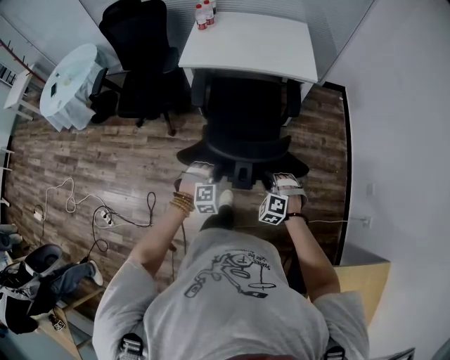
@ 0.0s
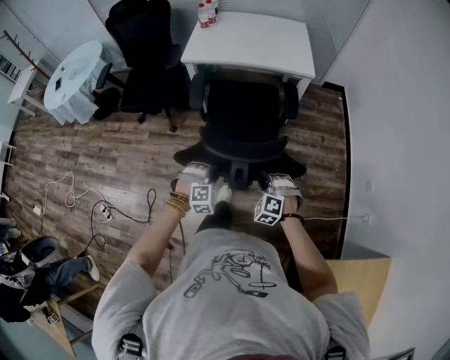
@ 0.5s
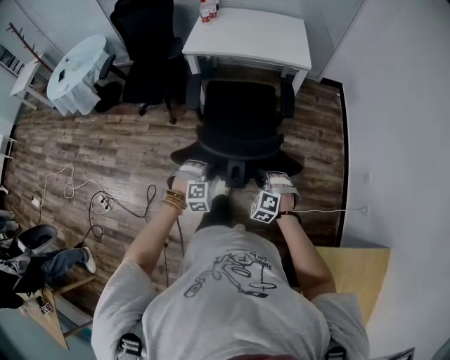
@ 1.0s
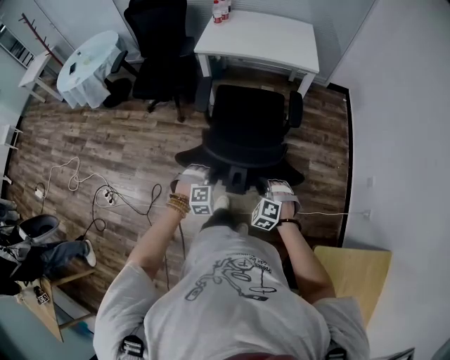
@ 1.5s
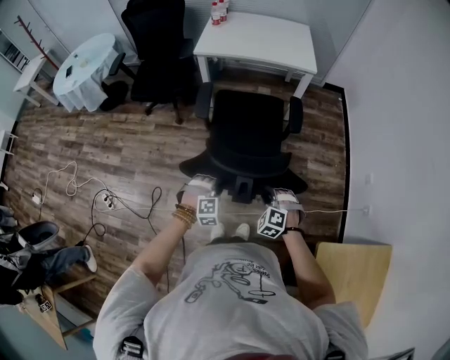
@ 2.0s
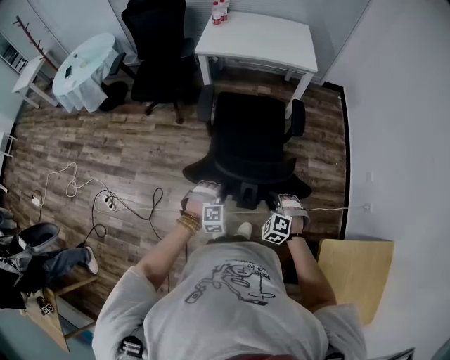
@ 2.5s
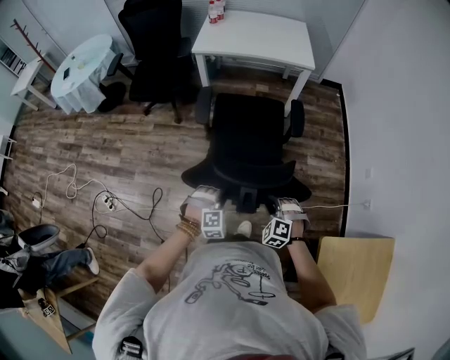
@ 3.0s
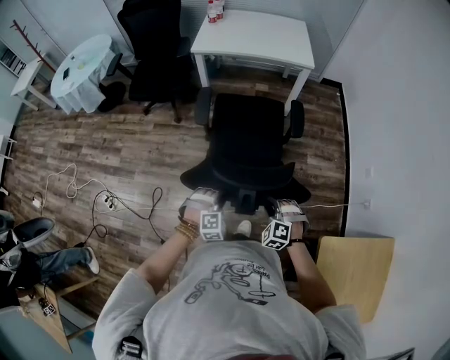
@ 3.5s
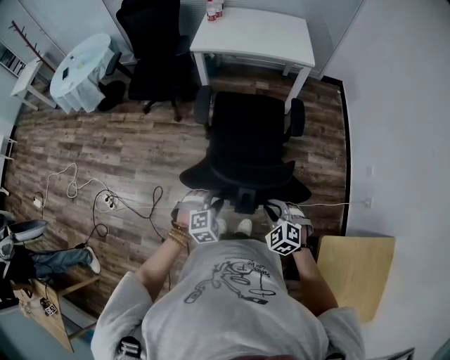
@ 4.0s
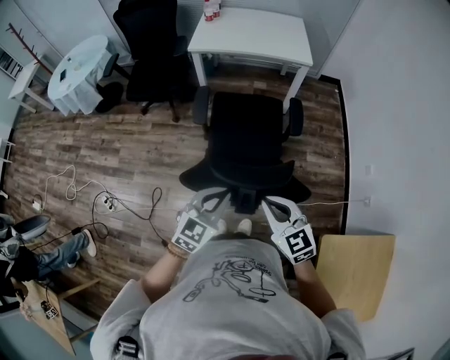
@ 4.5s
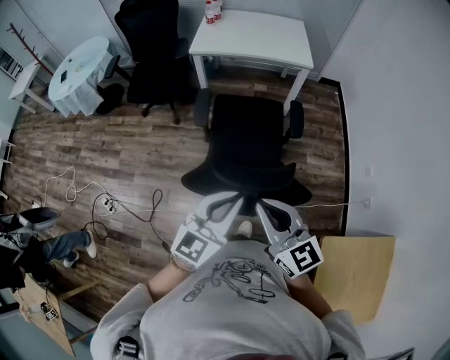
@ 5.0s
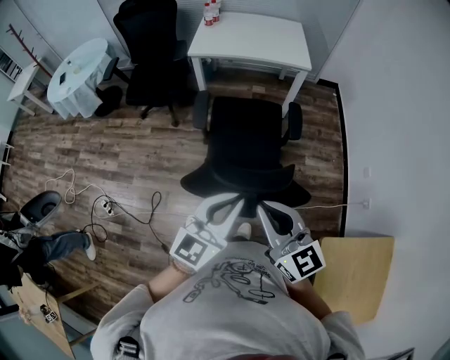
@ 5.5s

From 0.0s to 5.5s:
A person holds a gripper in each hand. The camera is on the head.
From 0.0s to 2.0s: The grippers both shift backward by roughly 25 cm.
From 2.0s to 3.5s: The two grippers go about 5 cm backward.
From 3.5s to 5.5s: The grippers both shift upward by about 30 cm. The left gripper tips its fingers upward by roughly 50 degrees, and closes its fingers. Meanwhile the right gripper points its fingers roughly 50 degrees further upward, and closes its fingers.

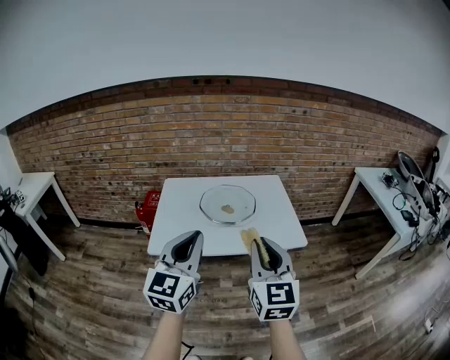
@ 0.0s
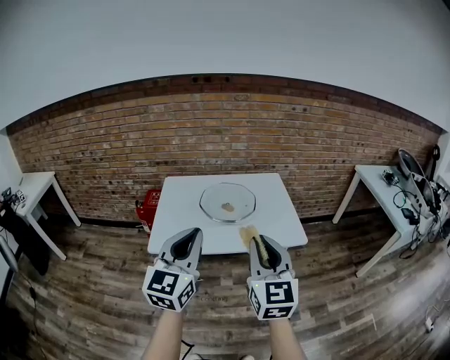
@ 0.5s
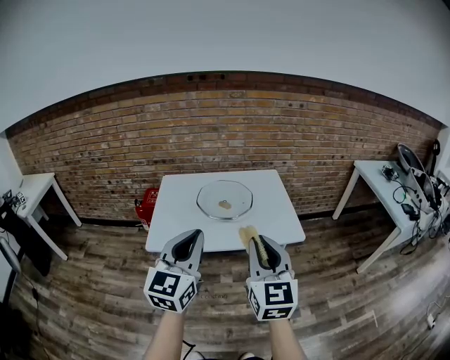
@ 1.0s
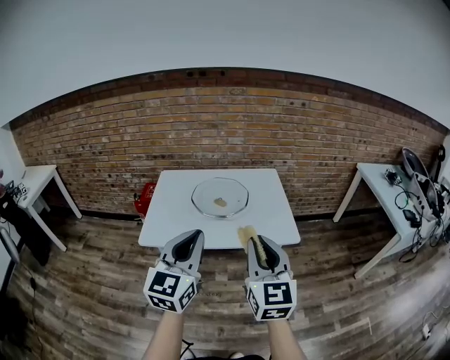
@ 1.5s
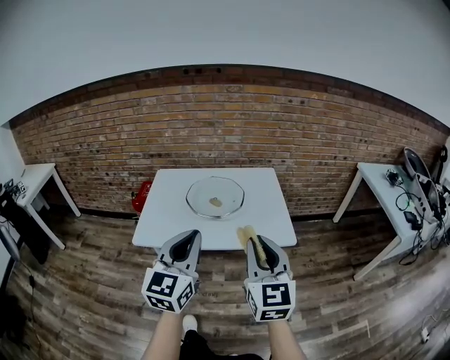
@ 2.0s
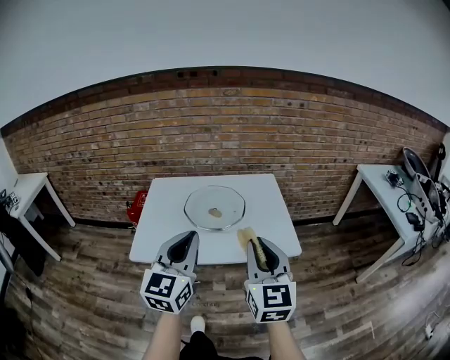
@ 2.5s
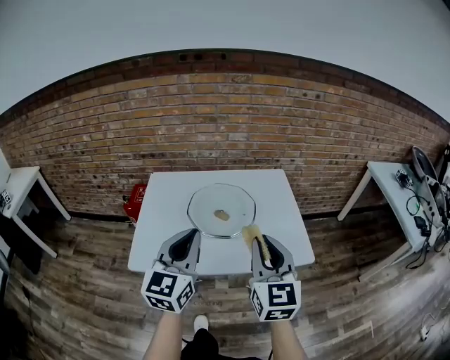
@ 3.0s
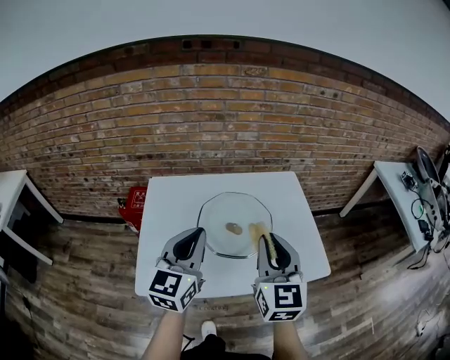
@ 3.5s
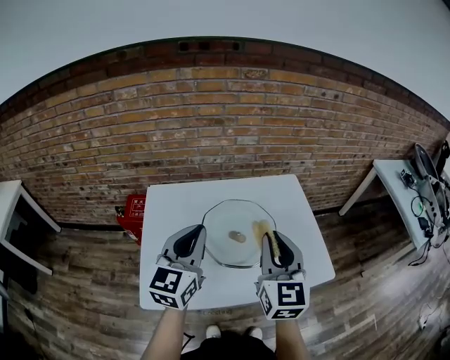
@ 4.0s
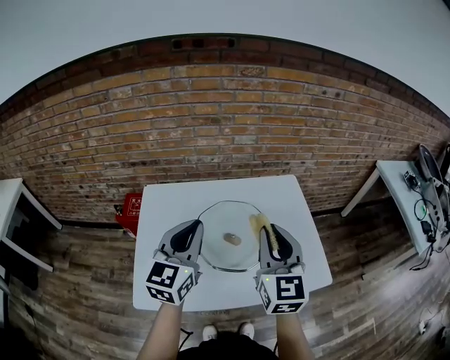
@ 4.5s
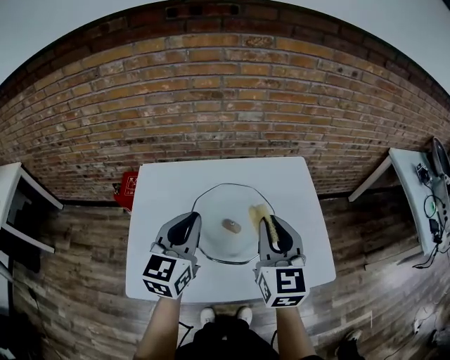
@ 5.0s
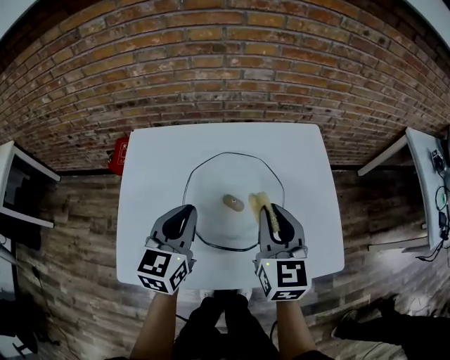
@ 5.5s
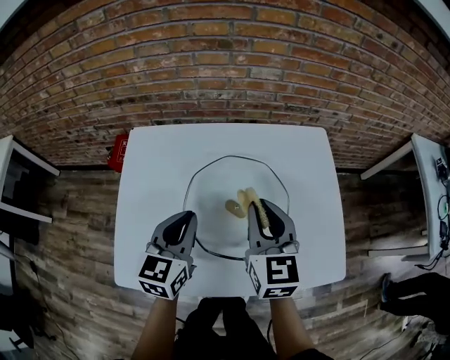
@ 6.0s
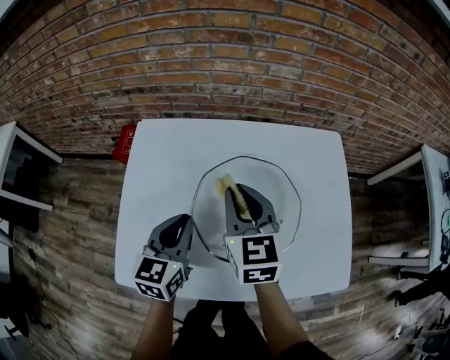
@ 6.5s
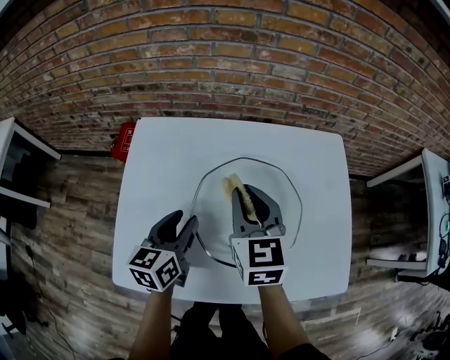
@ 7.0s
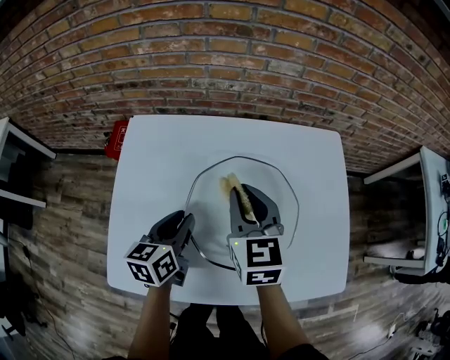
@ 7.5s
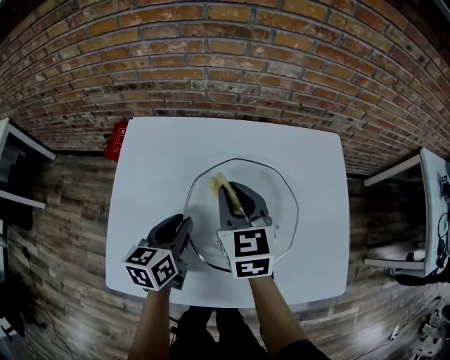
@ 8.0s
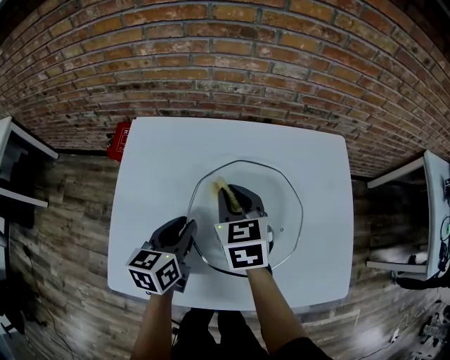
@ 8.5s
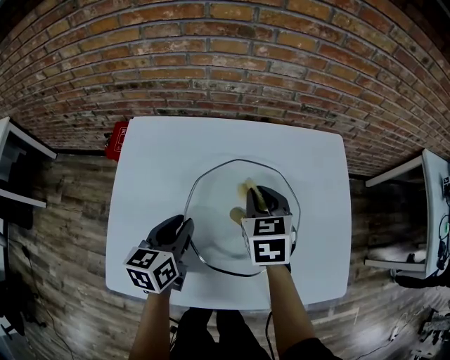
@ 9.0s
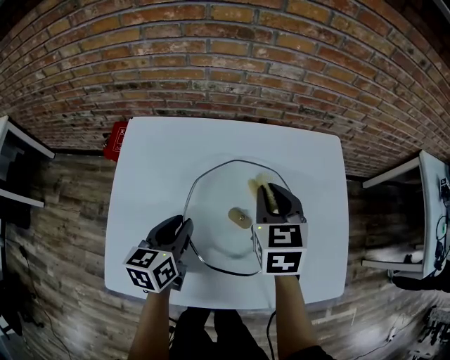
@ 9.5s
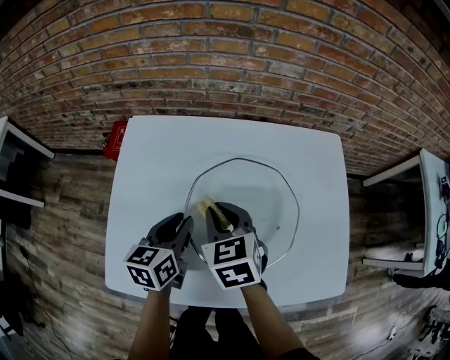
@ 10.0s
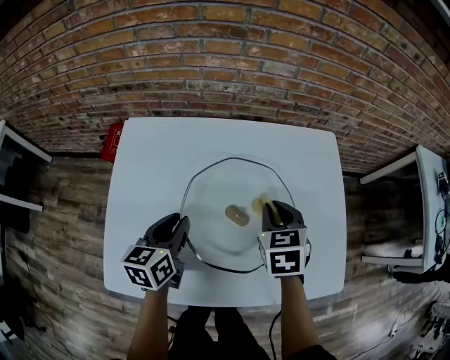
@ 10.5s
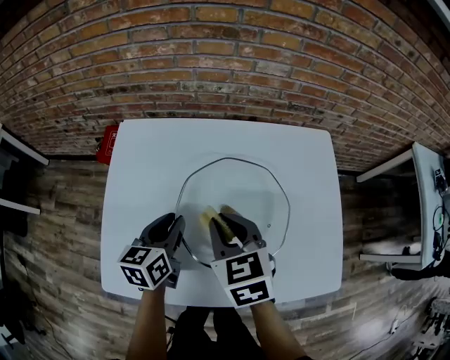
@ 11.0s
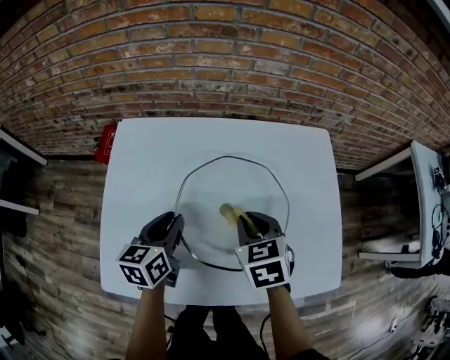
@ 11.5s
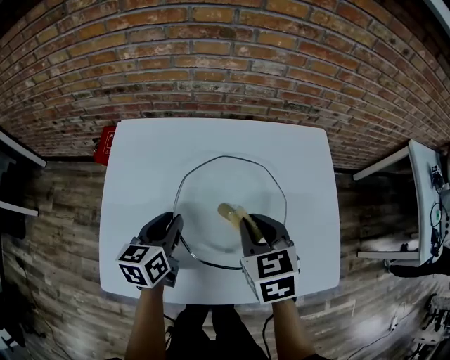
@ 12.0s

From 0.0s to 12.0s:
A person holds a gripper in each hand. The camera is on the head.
From 0.0s to 2.0s: The two grippers go about 10 cm to the right.
From 2.0s to 4.0s: The two grippers go roughly 35 cm forward and to the left.
From 4.0s to 6.0s: The two grippers go approximately 20 cm downward and forward. The left gripper swivels some 20 degrees.
From 6.0s to 8.0s: The left gripper is displaced downward by approximately 10 cm, turns by approximately 20 degrees, and opens. The right gripper shifts approximately 15 cm to the left, forward and downward.
From 8.0s to 10.0s: The right gripper goes to the right and returns, about 10 cm each way.
From 10.0s to 12.0s: The right gripper goes left and right, approximately 15 cm each way, reversing 2 times.

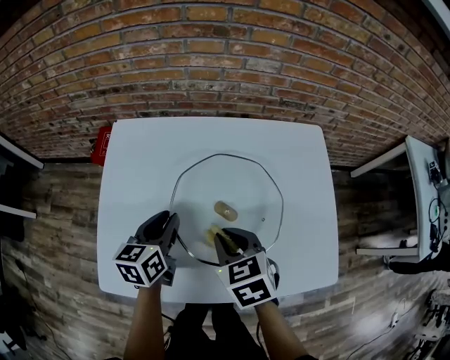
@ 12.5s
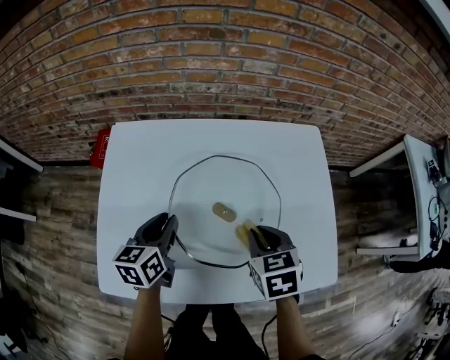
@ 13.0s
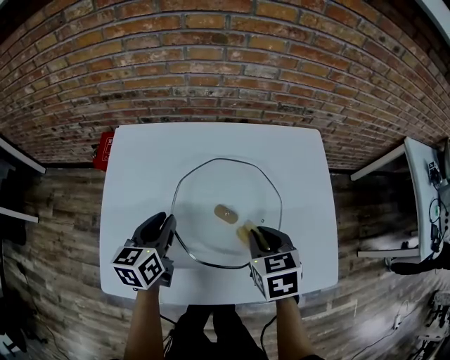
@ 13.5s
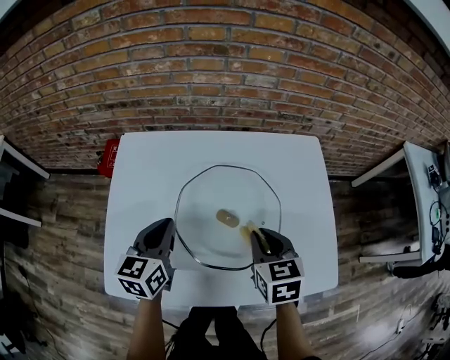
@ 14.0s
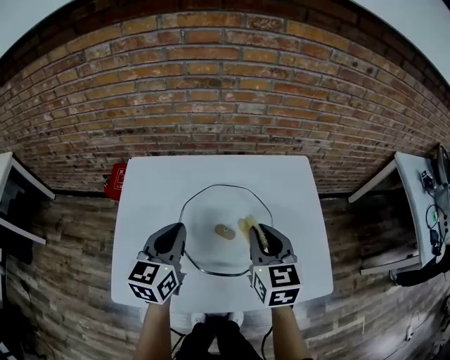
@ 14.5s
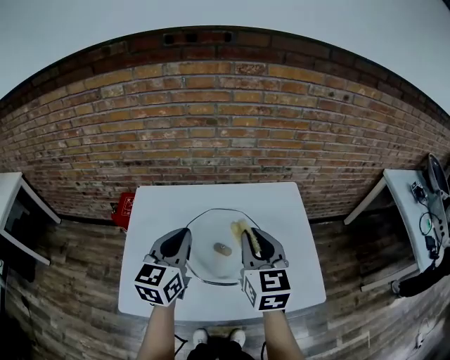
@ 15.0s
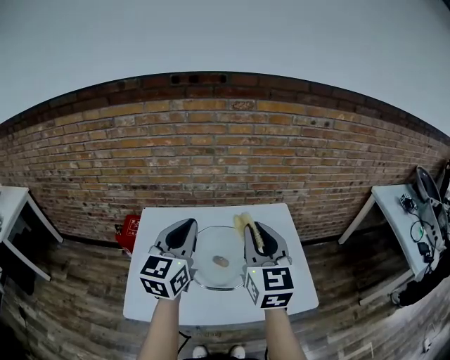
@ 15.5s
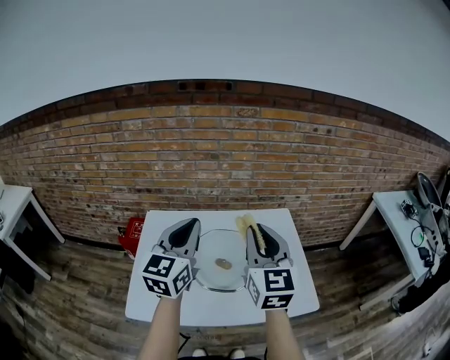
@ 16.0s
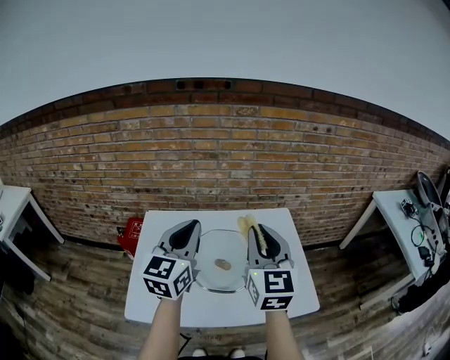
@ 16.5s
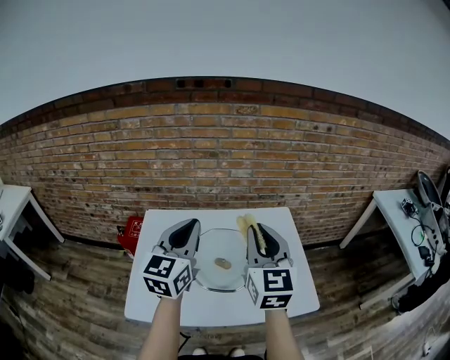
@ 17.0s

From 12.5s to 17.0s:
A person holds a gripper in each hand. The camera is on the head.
From 12.5s to 14.5s: The right gripper heads upward and to the right, covering roughly 15 cm, and changes its angle by about 30 degrees; the left gripper moves upward, about 10 cm, turns by about 20 degrees, and closes.
From 14.5s to 17.0s: The two grippers go some 20 cm upward. The right gripper turns by some 30 degrees. The left gripper swivels about 20 degrees.

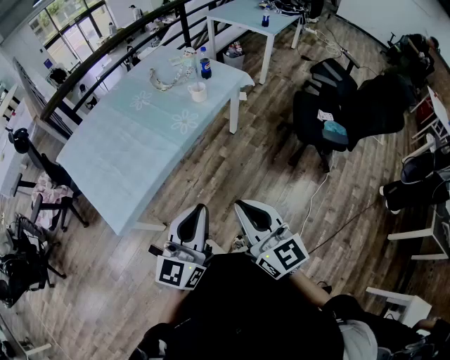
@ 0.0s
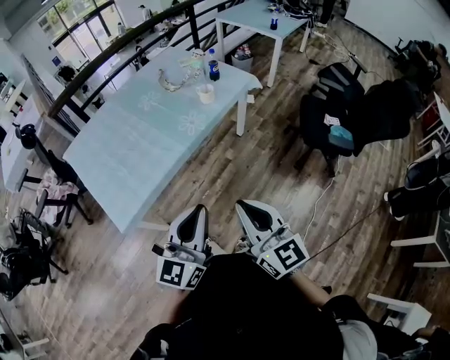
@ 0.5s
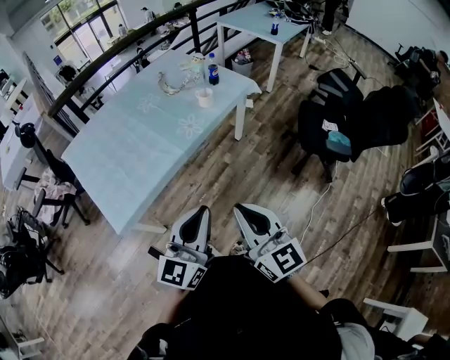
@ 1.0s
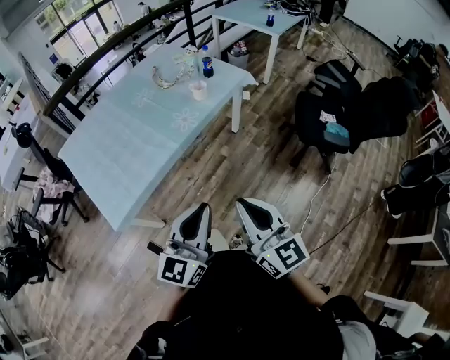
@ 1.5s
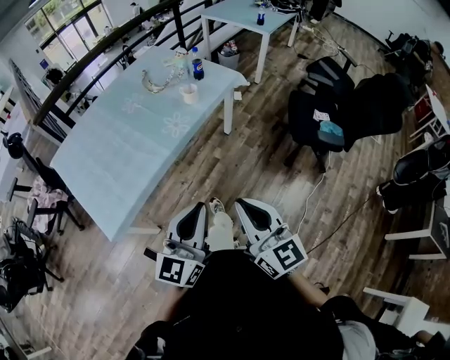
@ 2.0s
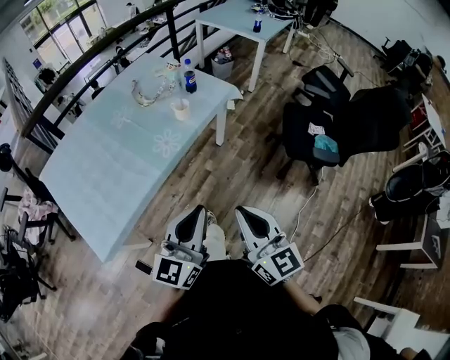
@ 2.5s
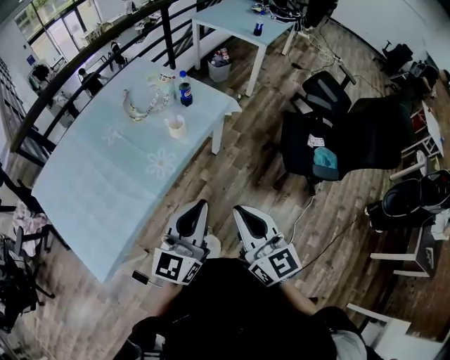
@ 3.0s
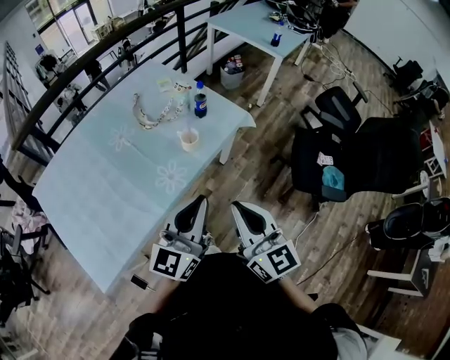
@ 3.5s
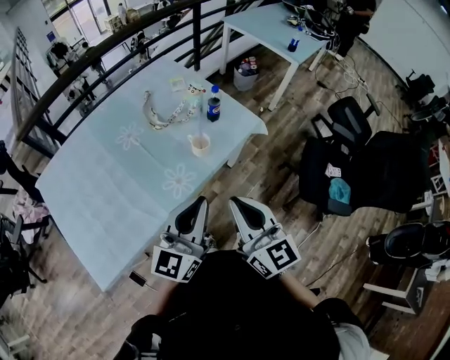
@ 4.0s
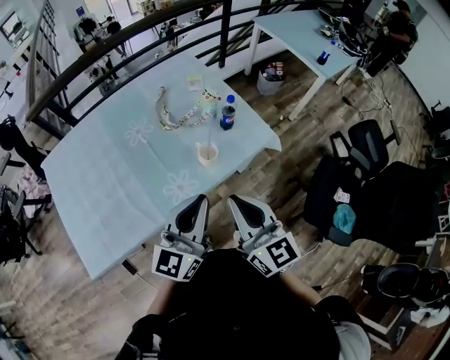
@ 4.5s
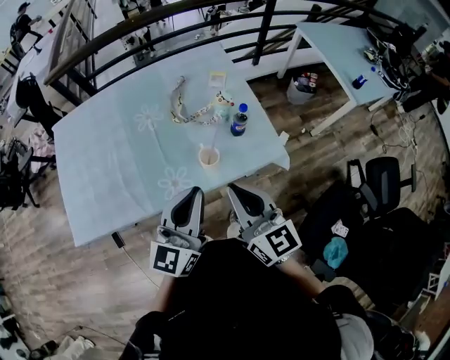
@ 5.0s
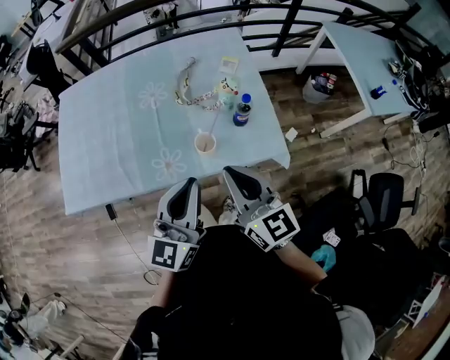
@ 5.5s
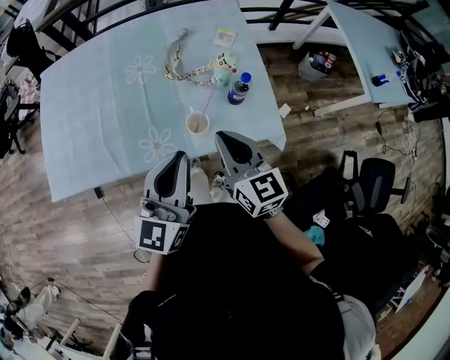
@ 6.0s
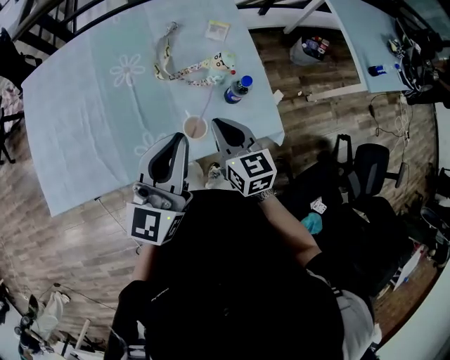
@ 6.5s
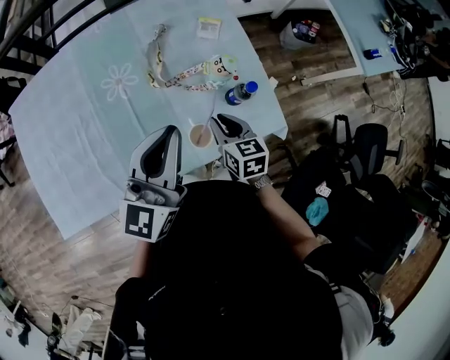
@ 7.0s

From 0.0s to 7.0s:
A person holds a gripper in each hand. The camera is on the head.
From 0.0s to 2.0s: There are only small adjustments of the grippers.
From 2.0s to 3.5s: Both grippers travel together forward, some 30 cm.
From 3.5s to 5.0s: The left gripper ends up some 20 cm from where it was, and changes its angle by approximately 30 degrees; the right gripper ends up about 25 cm from where it was, and rotates about 30 degrees.
From 5.0s to 7.0s: The right gripper goes about 30 cm downward and forward, and angles its fingers downward, by approximately 30 degrees, while the left gripper goes about 20 cm forward.
